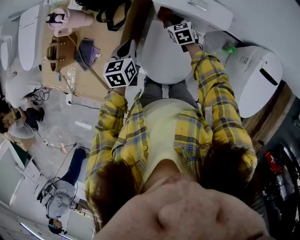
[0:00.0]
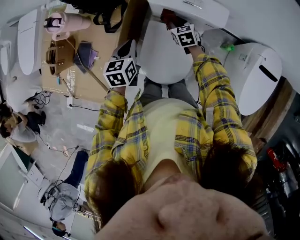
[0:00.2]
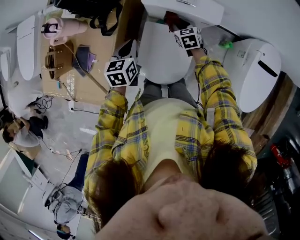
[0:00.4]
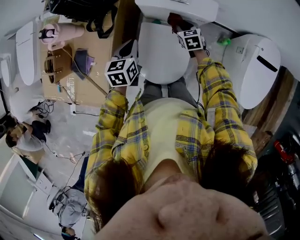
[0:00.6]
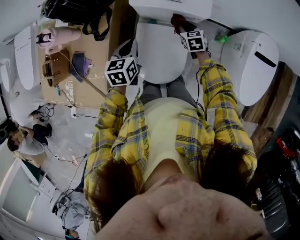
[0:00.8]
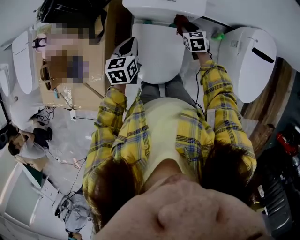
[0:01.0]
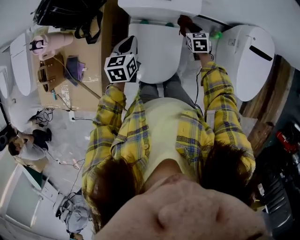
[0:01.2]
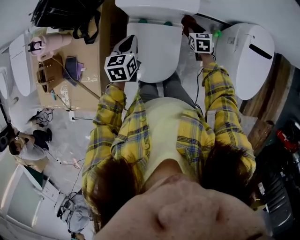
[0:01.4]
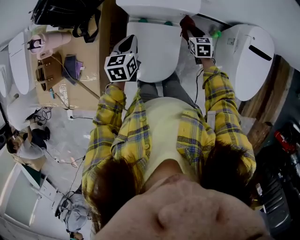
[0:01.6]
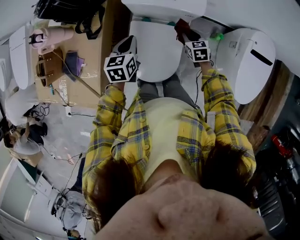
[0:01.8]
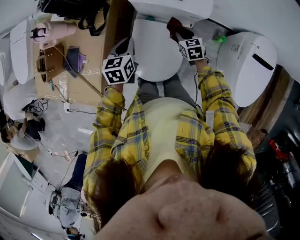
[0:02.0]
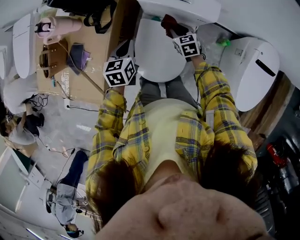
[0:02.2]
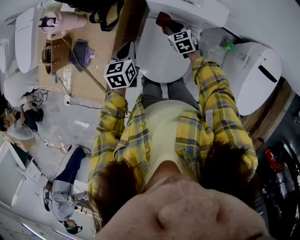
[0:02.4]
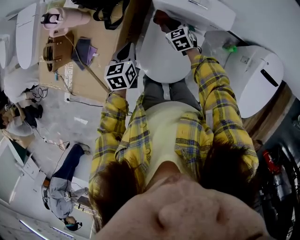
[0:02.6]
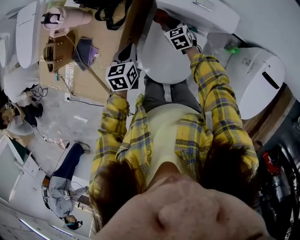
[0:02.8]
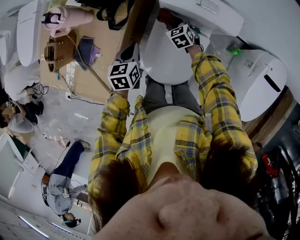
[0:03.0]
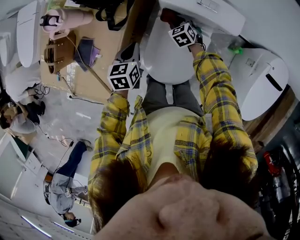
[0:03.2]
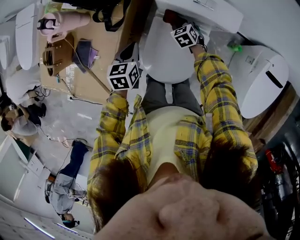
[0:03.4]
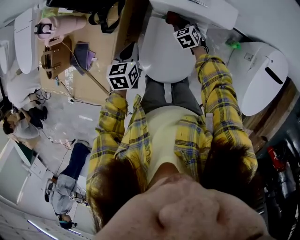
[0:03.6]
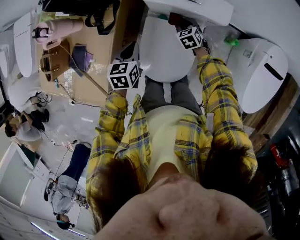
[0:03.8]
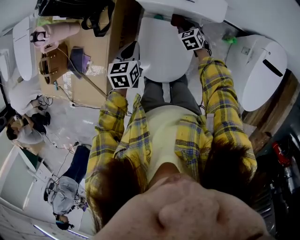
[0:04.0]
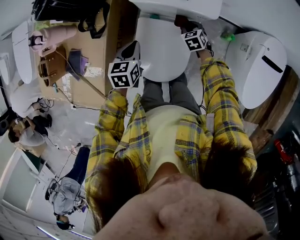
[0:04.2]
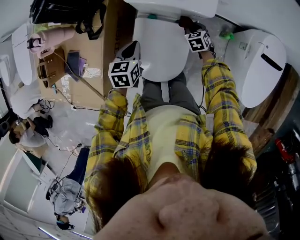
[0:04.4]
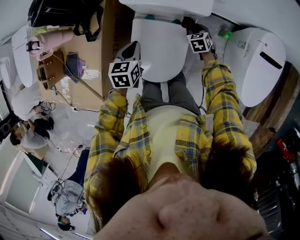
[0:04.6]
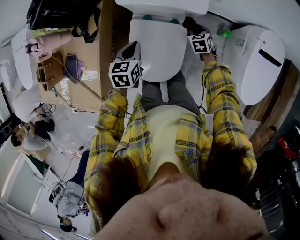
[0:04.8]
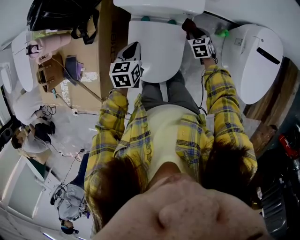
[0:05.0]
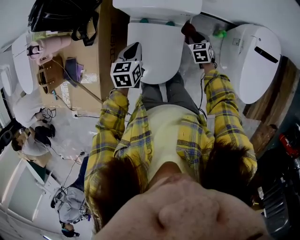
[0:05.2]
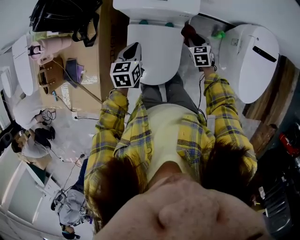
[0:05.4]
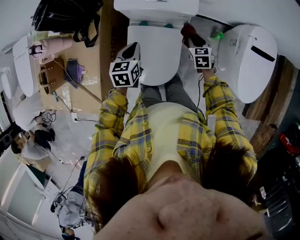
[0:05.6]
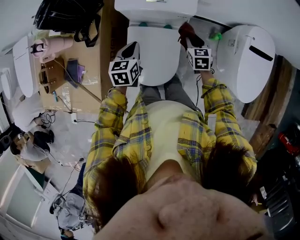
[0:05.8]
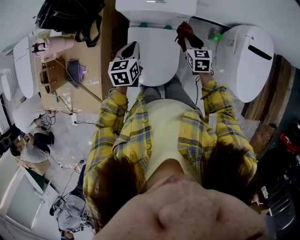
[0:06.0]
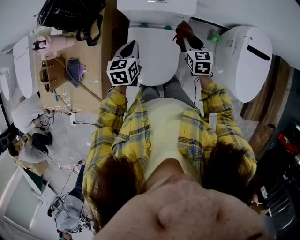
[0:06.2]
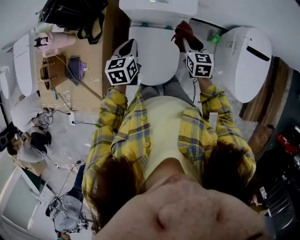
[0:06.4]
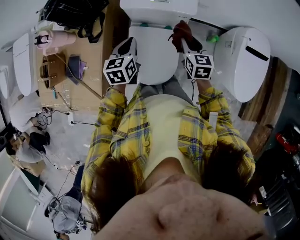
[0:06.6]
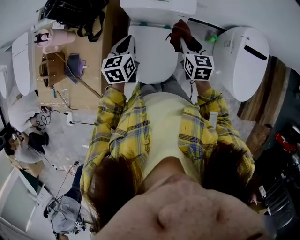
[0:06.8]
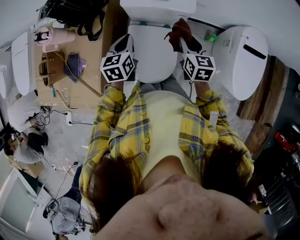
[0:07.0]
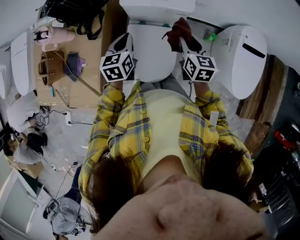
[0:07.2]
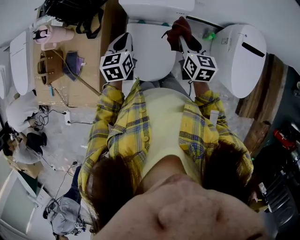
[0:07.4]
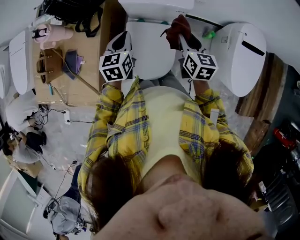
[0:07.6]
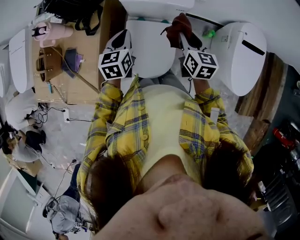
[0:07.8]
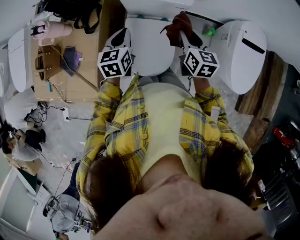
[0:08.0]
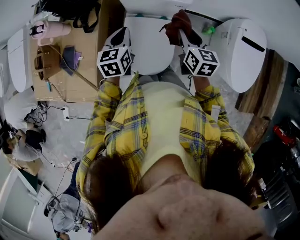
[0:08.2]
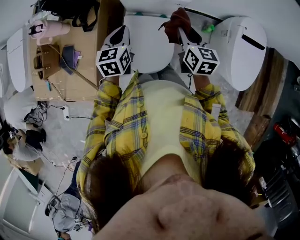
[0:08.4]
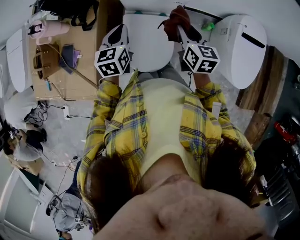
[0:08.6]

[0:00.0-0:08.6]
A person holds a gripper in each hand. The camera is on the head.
0:00.0 to 0:01.4: The left gripper shifts about 10 cm to the right; the right gripper shifts roughly 25 cm to the right, and changes its angle by approximately 30 degrees.
0:01.4 to 0:02.8: The left gripper changes place by approximately 15 cm. The right gripper ends up roughly 30 cm from where it was, and changes its angle by some 30 degrees.
0:02.8 to 0:04.4: The left gripper shifts approximately 10 cm to the right; the right gripper is displaced to the right by some 20 cm, and turns by approximately 20 degrees.
0:04.4 to 0:05.8: The right gripper goes approximately 15 cm upward, backward and to the right, and rotates roughly 20 degrees. Meanwhile the left gripper moves approximately 5 cm.
0:05.8 to 0:07.2: The right gripper is displaced upward by roughly 15 cm; the left gripper is displaced upward by some 5 cm.
0:07.2 to 0:08.6: The grippers move only a little.

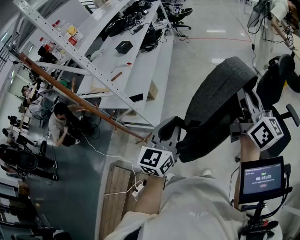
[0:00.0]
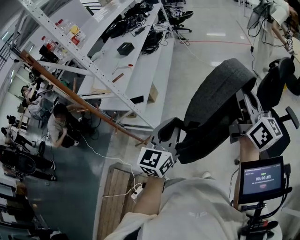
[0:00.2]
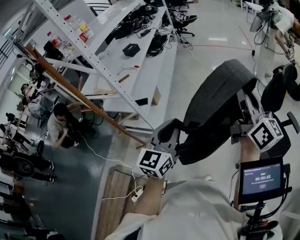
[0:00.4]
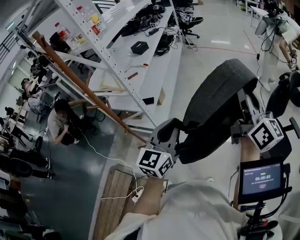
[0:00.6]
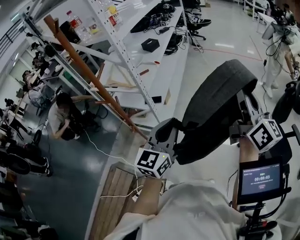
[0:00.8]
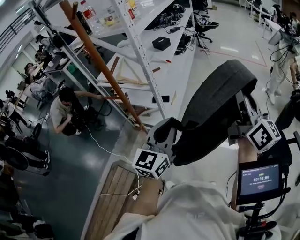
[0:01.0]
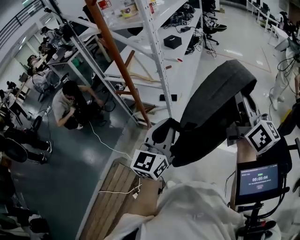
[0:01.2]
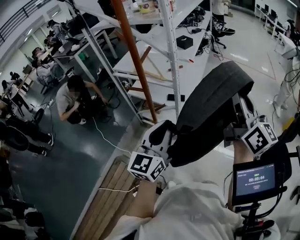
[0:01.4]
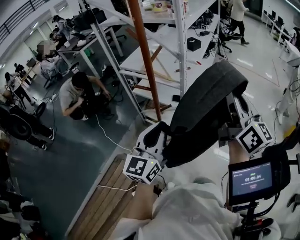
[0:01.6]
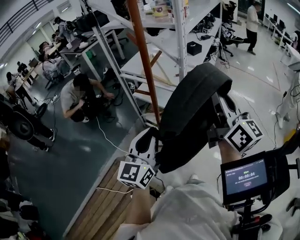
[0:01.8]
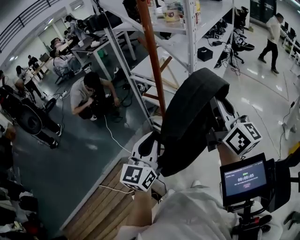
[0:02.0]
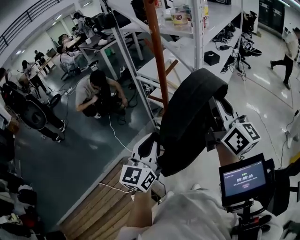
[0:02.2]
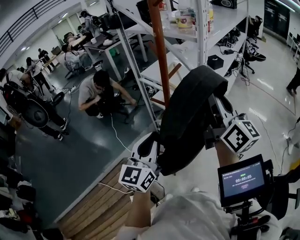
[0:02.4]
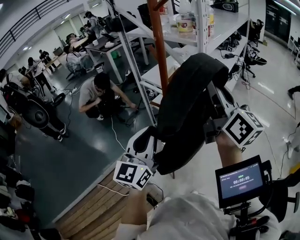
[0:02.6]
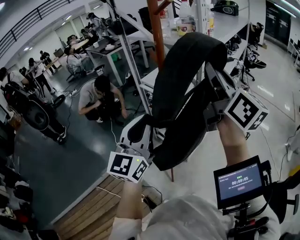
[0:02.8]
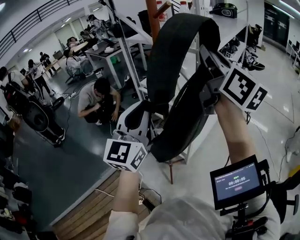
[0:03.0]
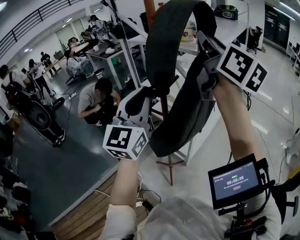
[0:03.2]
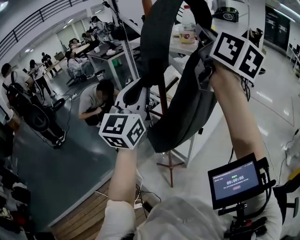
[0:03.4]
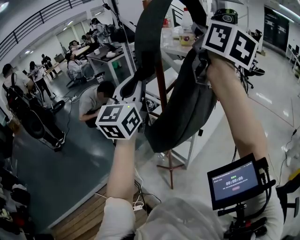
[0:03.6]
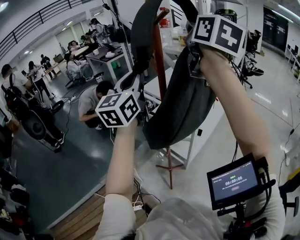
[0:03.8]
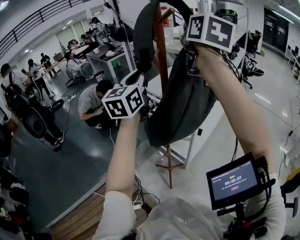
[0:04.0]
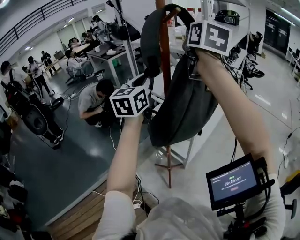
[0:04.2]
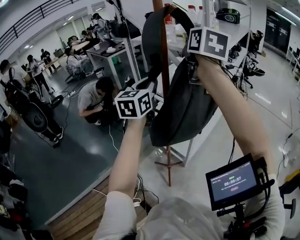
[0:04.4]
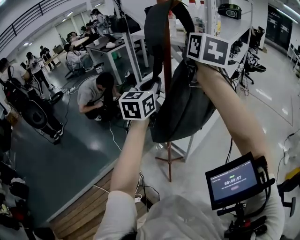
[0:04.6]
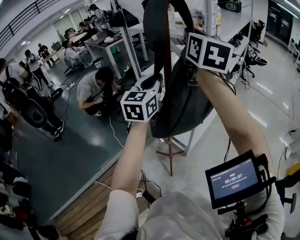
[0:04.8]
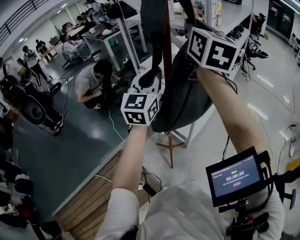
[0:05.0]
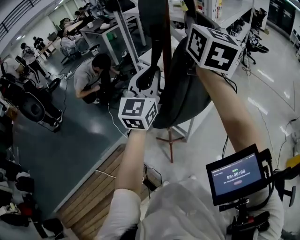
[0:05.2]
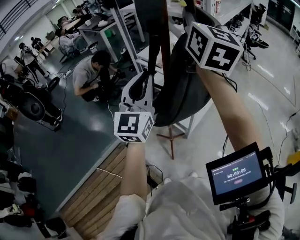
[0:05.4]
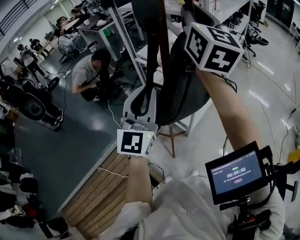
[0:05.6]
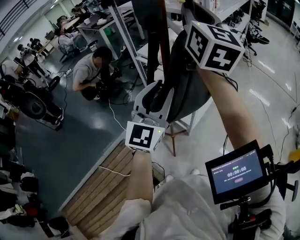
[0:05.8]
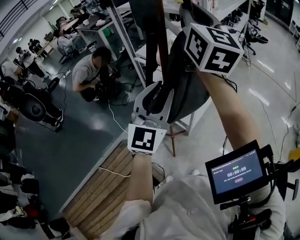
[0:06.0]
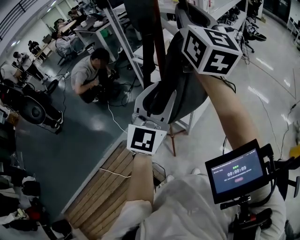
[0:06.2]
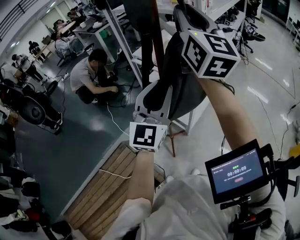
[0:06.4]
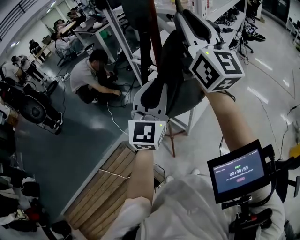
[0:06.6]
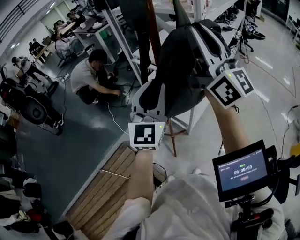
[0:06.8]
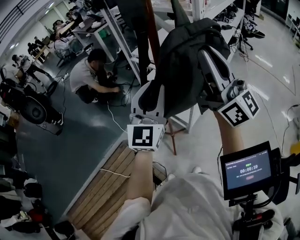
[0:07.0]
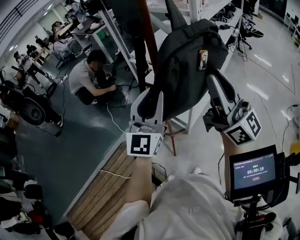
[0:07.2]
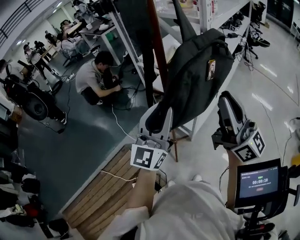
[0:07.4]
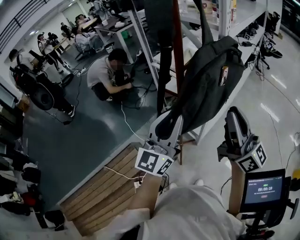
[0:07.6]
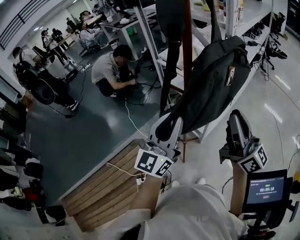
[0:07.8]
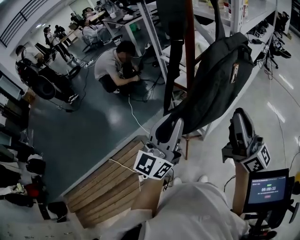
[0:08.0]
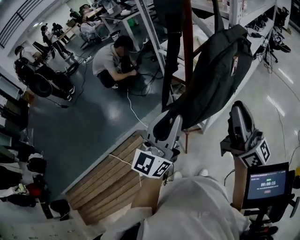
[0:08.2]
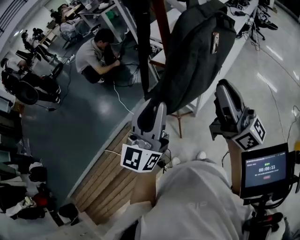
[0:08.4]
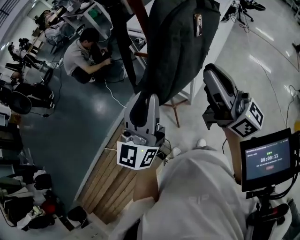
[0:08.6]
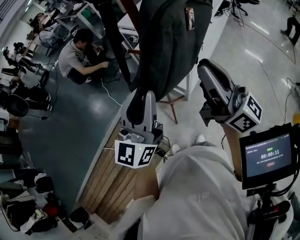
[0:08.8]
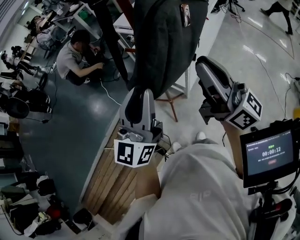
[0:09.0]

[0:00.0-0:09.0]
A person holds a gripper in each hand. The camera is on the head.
0:00.0 to 0:01.6: The two grippers travel together, to the left, approximately 50 cm. The left gripper changes its angle by some 20 degrees.
0:01.6 to 0:03.0: The left gripper heads upward and forward, covering about 20 cm, and changes its angle by approximately 20 degrees. The right gripper goes about 25 cm upward, forward and to the left.
0:03.0 to 0:04.4: The right gripper is displaced forward and to the left by about 15 cm, and changes its angle by approximately 30 degrees. The left gripper moves forward, some 15 cm, and swivels roughly 20 degrees.
0:04.4 to 0:06.0: The right gripper heads backward, covering roughly 5 cm, and turns by some 20 degrees, while the left gripper moves backward and to the right, approximately 15 cm, and turns by roughly 20 degrees.
0:06.0 to 0:07.6: The left gripper ends up roughly 5 cm from where it was, and turns by about 20 degrees; the right gripper travels downward and backward by approximately 25 cm, and rotates about 30 degrees.
0:07.6 to 0:09.0: The grippers make only small movements.

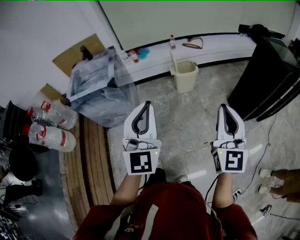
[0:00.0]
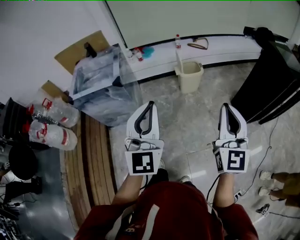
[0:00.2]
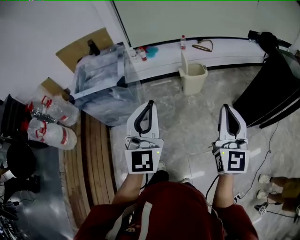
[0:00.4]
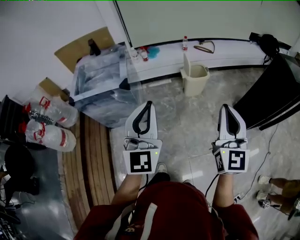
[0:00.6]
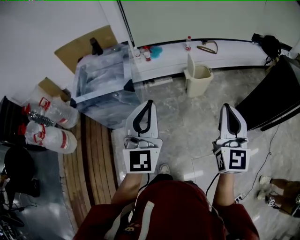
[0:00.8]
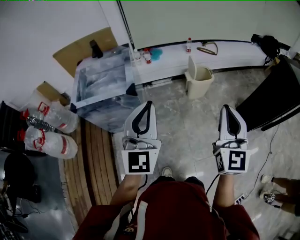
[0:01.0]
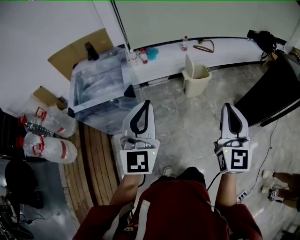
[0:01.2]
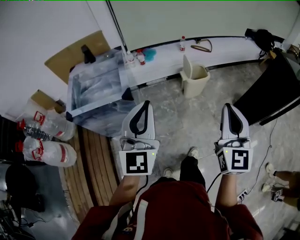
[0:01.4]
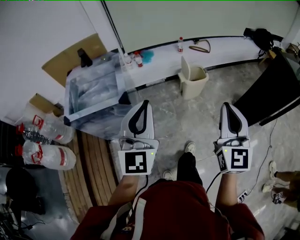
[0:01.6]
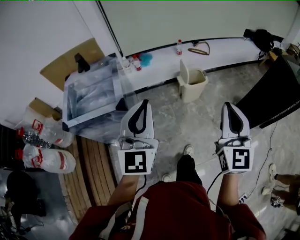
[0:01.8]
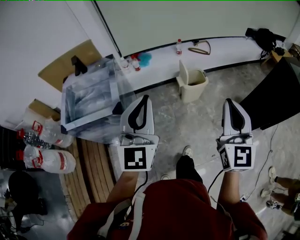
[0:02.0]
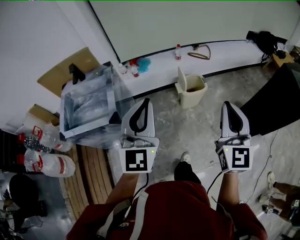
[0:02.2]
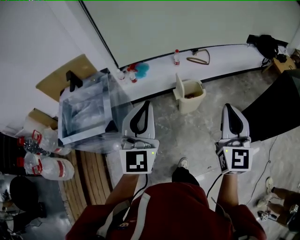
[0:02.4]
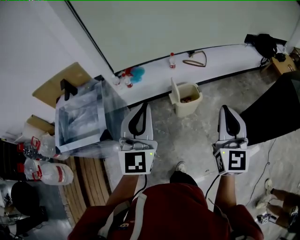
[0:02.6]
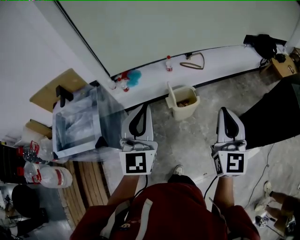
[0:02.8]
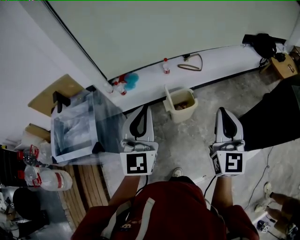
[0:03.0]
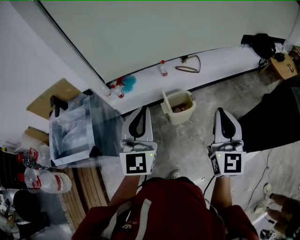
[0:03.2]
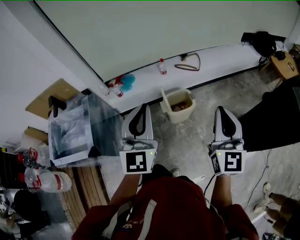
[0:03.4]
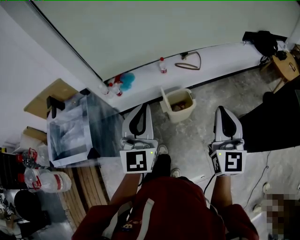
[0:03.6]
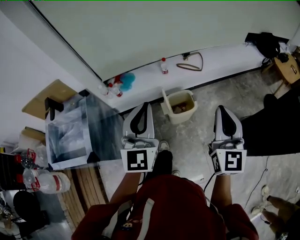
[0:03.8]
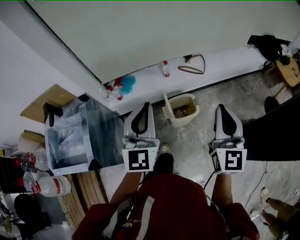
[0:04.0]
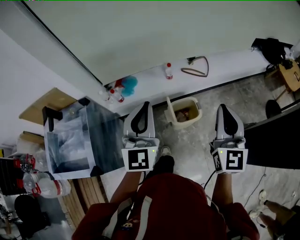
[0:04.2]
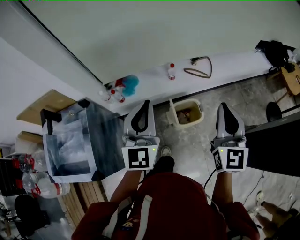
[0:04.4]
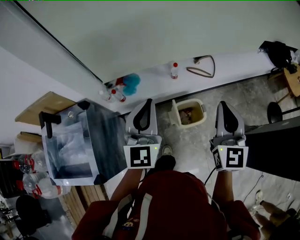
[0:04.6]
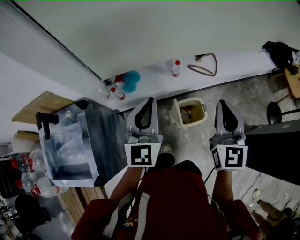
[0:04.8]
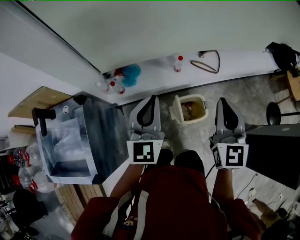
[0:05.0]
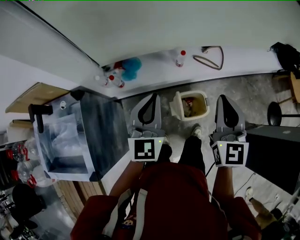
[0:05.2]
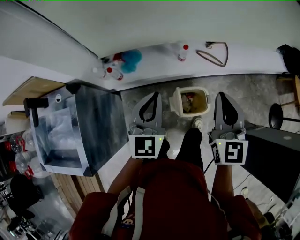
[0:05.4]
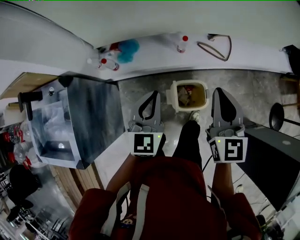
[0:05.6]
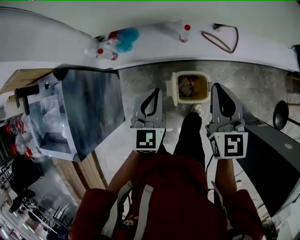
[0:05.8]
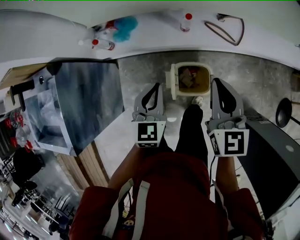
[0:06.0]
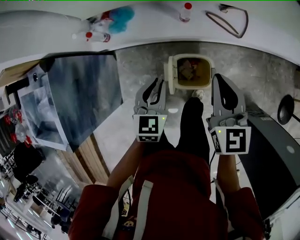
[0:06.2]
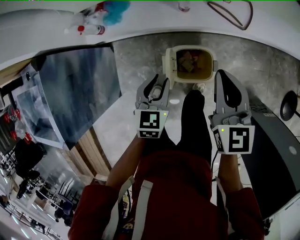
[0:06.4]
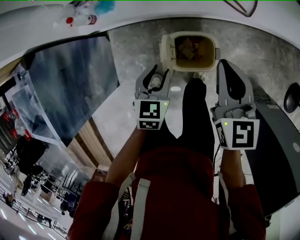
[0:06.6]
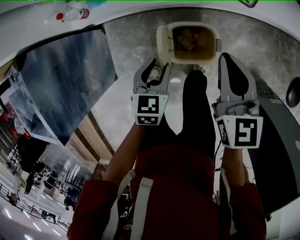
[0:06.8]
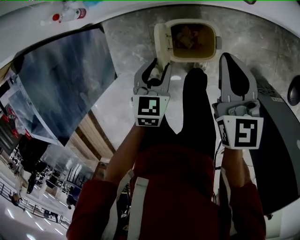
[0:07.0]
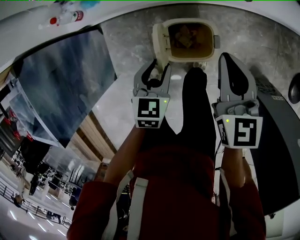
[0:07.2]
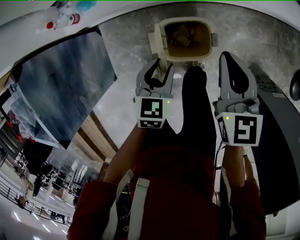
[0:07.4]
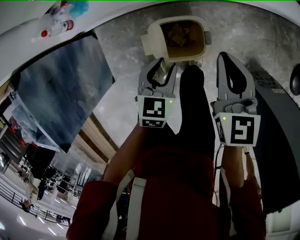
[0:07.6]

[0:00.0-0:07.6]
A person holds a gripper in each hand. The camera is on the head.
0:00.0 to 0:01.6: The grippers both shift to the left and forward by roughly 25 cm.
0:01.6 to 0:03.0: Both grippers move forward and to the right, approximately 35 cm.
0:03.0 to 0:04.6: The grippers both shift forward by roughly 25 cm.
0:04.6 to 0:06.0: The left gripper travels downward by roughly 30 cm, and changes its angle by about 30 degrees, while the right gripper moves downward and forward, about 25 cm, and changes its angle by roughly 30 degrees.
0:06.0 to 0:07.6: Both grippers travel together downward and to the right, some 20 cm. The left gripper swivels roughly 20 degrees, and opens.
